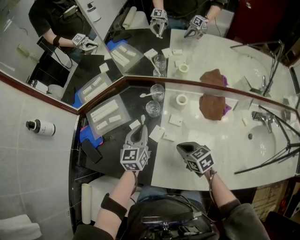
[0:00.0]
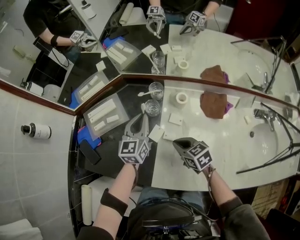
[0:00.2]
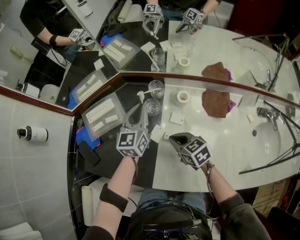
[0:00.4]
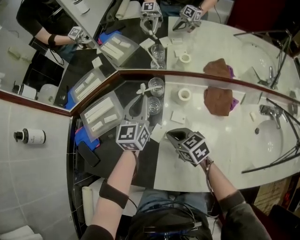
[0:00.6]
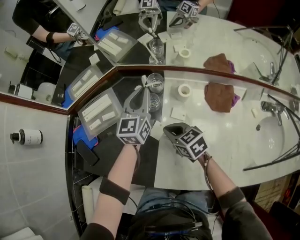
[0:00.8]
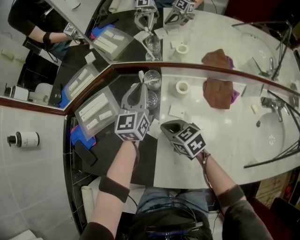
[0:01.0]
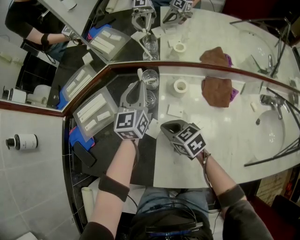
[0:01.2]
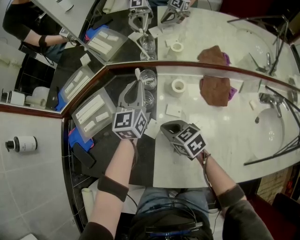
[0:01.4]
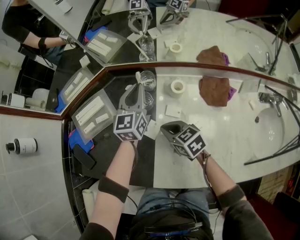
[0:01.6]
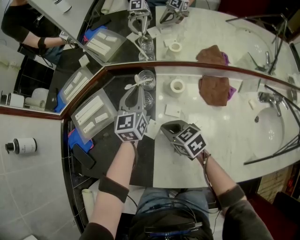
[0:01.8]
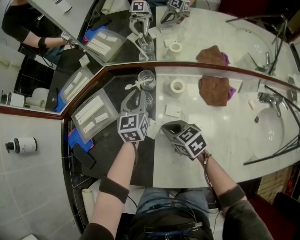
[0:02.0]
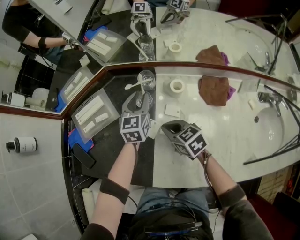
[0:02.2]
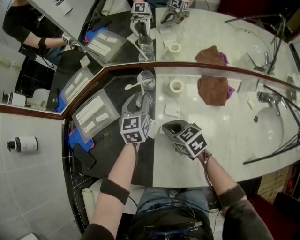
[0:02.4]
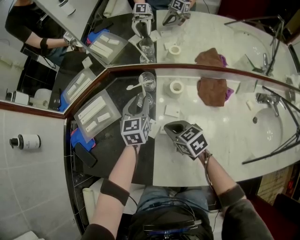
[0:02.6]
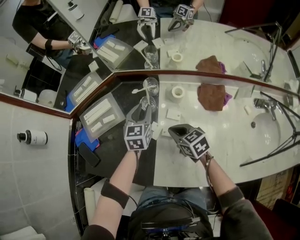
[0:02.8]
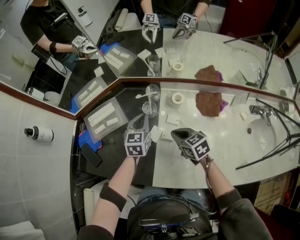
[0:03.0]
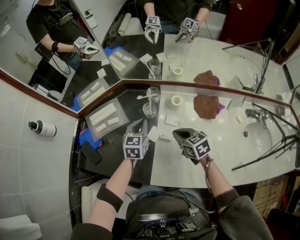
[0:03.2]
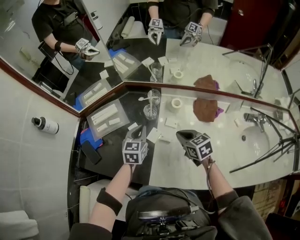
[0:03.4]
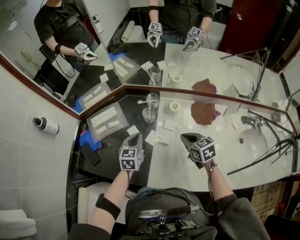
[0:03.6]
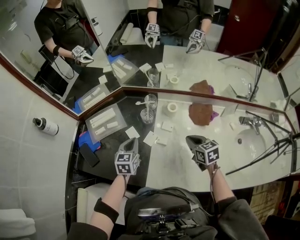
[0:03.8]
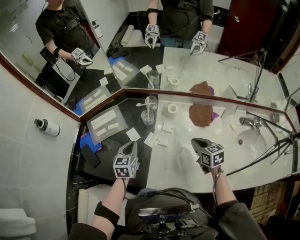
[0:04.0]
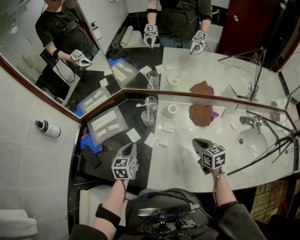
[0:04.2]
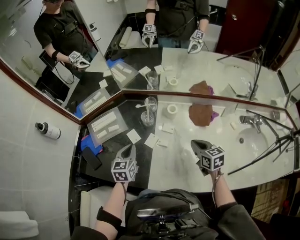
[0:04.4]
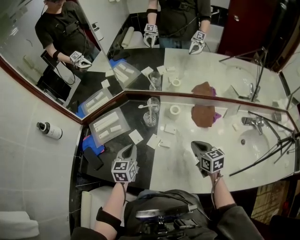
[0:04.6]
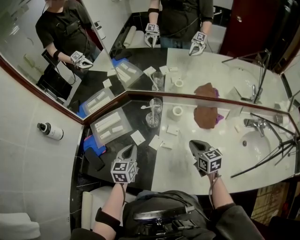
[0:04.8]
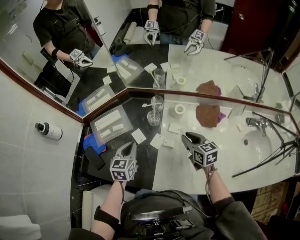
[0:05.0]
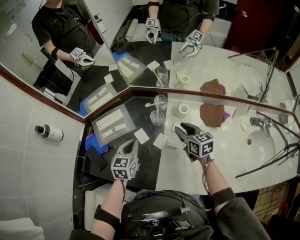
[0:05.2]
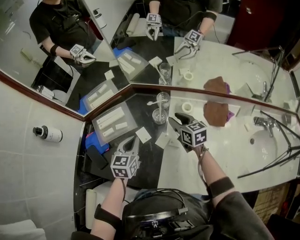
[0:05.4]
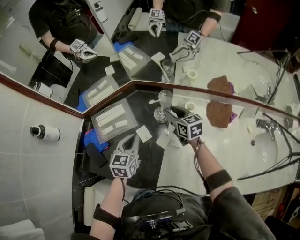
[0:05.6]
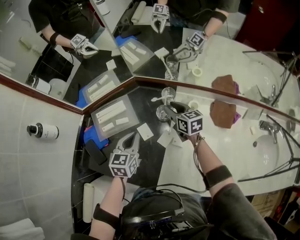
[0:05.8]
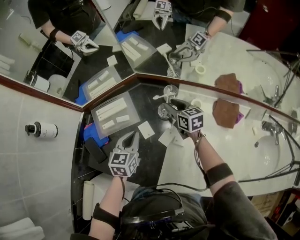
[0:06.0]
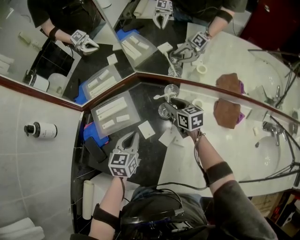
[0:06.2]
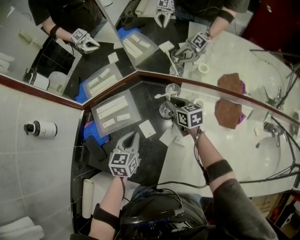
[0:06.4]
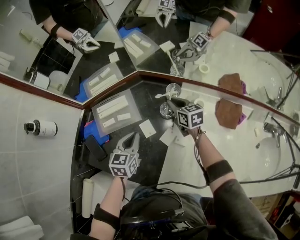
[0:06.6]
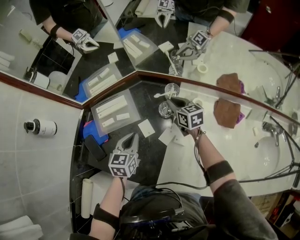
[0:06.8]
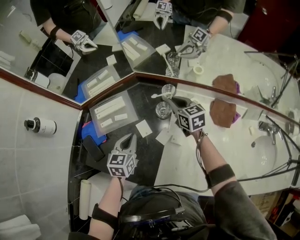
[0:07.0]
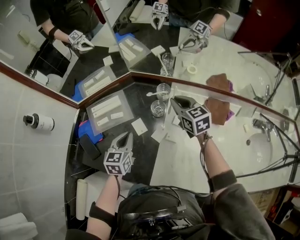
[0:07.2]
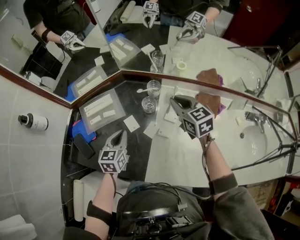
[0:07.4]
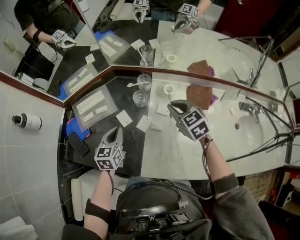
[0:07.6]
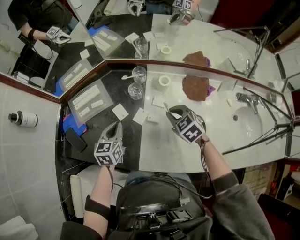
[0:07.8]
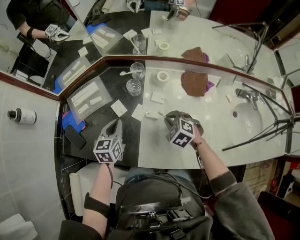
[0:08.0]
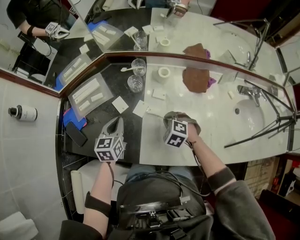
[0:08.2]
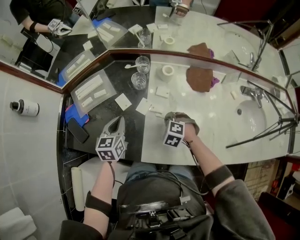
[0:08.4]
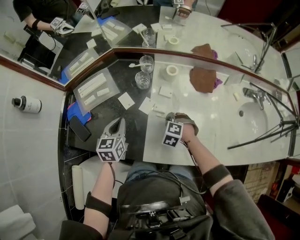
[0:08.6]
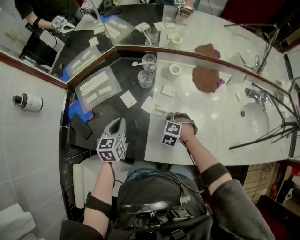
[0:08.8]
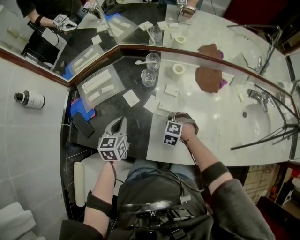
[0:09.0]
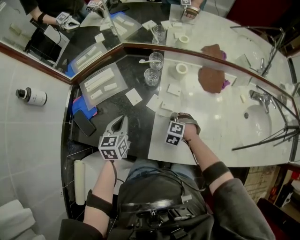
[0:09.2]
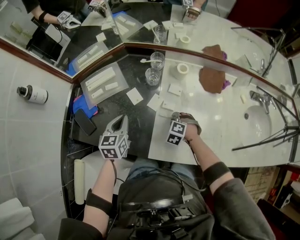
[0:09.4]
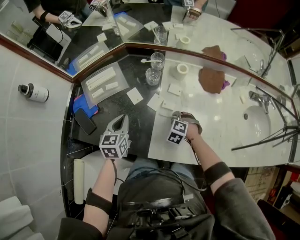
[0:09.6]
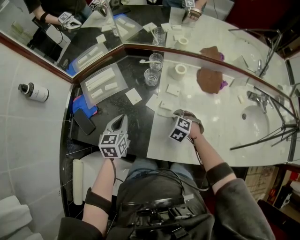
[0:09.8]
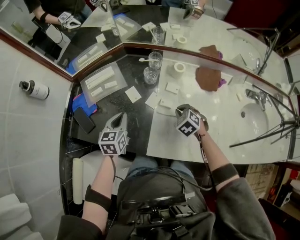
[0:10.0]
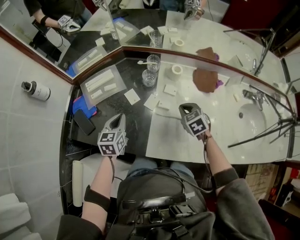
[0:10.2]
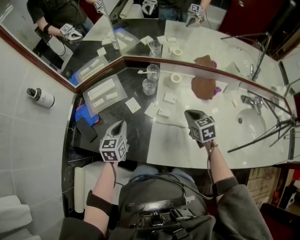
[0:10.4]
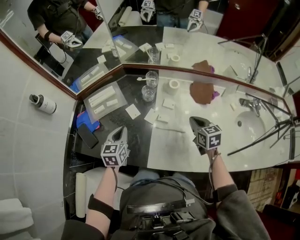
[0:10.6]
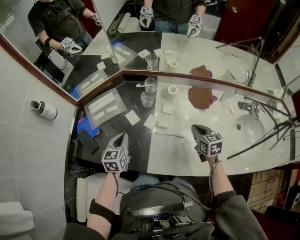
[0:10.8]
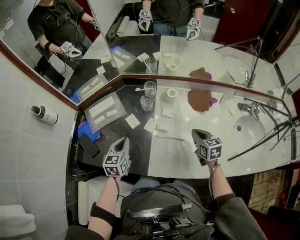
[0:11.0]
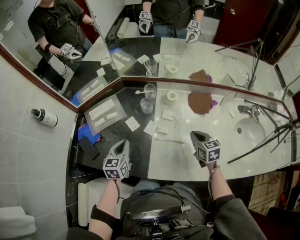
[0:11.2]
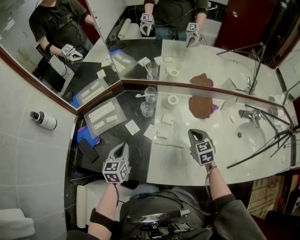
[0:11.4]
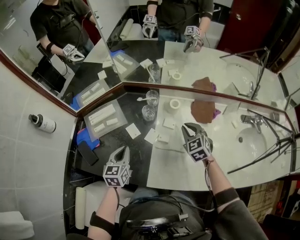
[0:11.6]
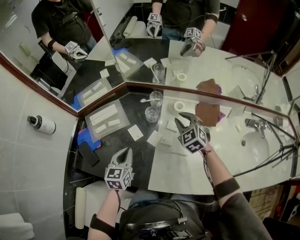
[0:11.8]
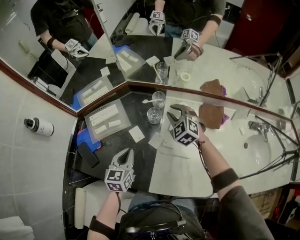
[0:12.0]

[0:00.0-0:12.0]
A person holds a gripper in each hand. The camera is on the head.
0:00.0 to 0:01.6: The right gripper travels forward by some 10 cm, while the left gripper travels forward and to the right by some 15 cm.
0:01.6 to 0:03.0: The left gripper is displaced backward by approximately 10 cm, and opens, then closes once more, while the right gripper shifts about 5 cm upward.
0:03.0 to 0:04.4: The right gripper is displaced to the right and backward by approximately 15 cm. The left gripper is displaced backward and to the left by about 15 cm.
0:04.4 to 0:06.0: The left gripper travels forward by approximately 10 cm; the right gripper heads forward and to the left, covering some 30 cm, and opens up.
0:06.0 to 0:07.6: The left gripper goes approximately 5 cm backward, while the right gripper is displaced backward, upward and to the right by approximately 20 cm, swivels approximately 30 degrees, and closes up.
0:07.6 to 0:09.0: The right gripper travels downward and backward by about 25 cm, and points its fingers approximately 30 degrees further downward; the left gripper moves backward, some 5 cm.
0:09.0 to 0:10.4: The right gripper travels upward and to the right by about 15 cm, and rotates around the line of its fingers by approximately 50 degrees, clockwise from behind.
0:10.4 to 0:12.0: The right gripper shifts some 20 cm forward and to the left, twists roughly 40 degrees counterclockwise, seen from behind, and opens up.

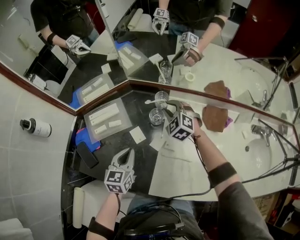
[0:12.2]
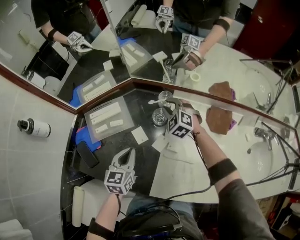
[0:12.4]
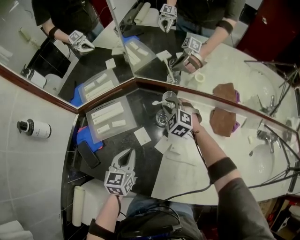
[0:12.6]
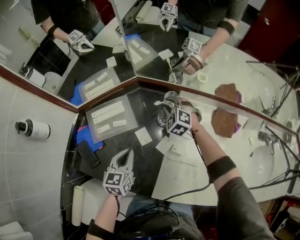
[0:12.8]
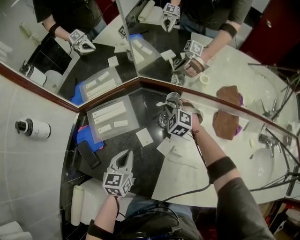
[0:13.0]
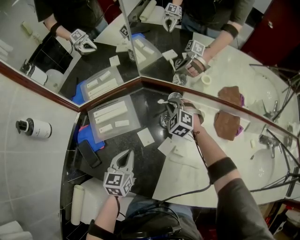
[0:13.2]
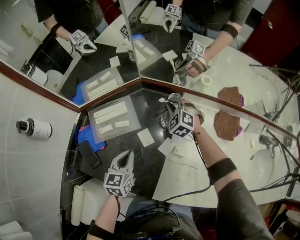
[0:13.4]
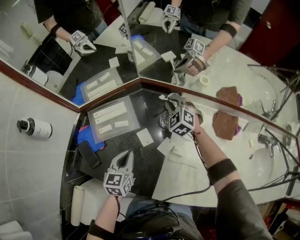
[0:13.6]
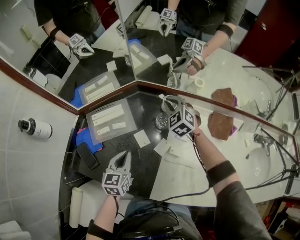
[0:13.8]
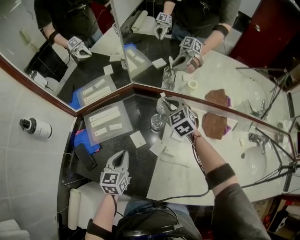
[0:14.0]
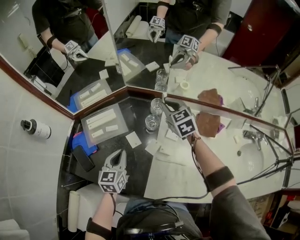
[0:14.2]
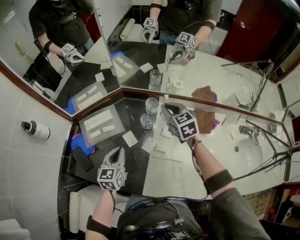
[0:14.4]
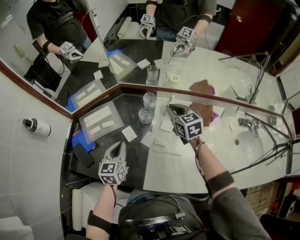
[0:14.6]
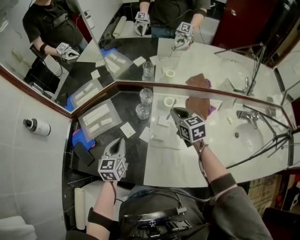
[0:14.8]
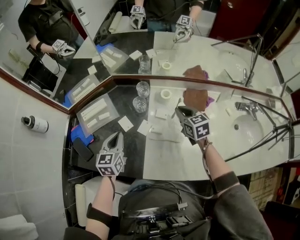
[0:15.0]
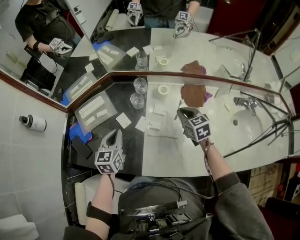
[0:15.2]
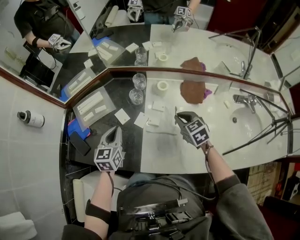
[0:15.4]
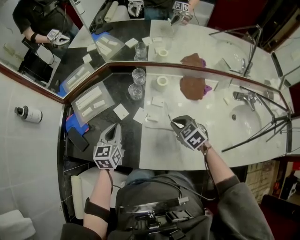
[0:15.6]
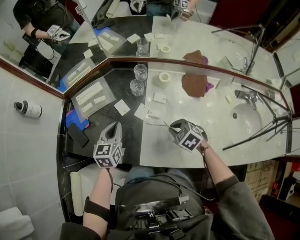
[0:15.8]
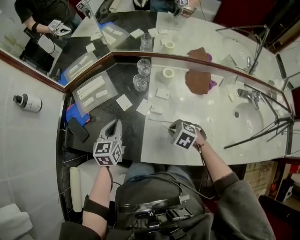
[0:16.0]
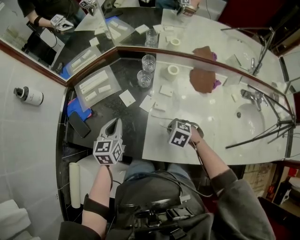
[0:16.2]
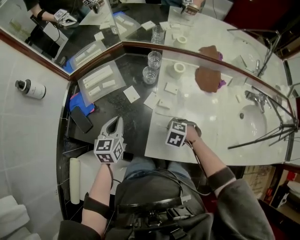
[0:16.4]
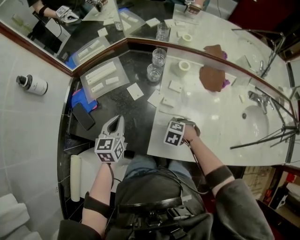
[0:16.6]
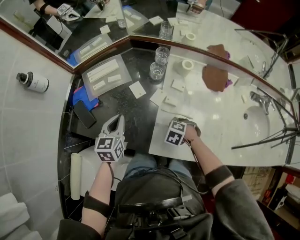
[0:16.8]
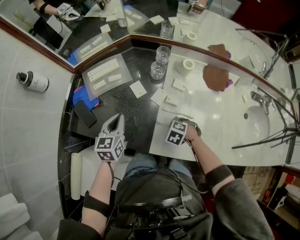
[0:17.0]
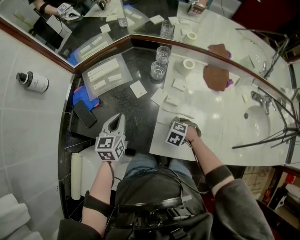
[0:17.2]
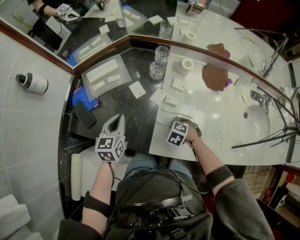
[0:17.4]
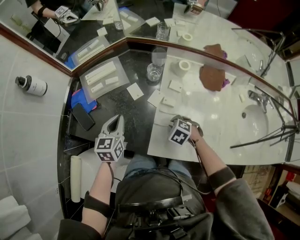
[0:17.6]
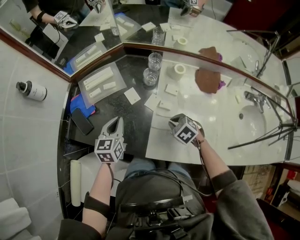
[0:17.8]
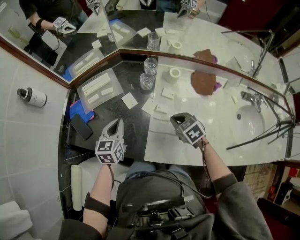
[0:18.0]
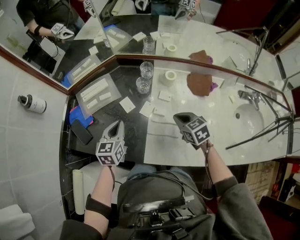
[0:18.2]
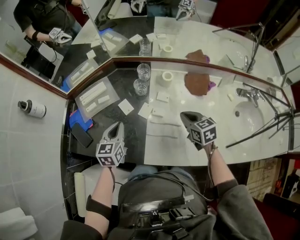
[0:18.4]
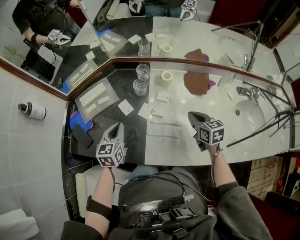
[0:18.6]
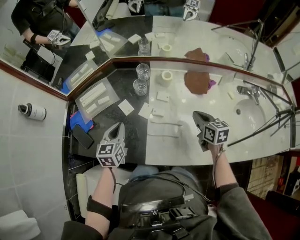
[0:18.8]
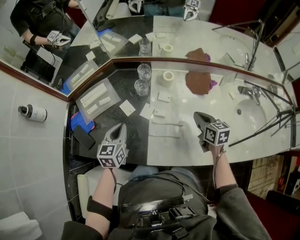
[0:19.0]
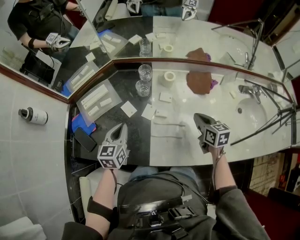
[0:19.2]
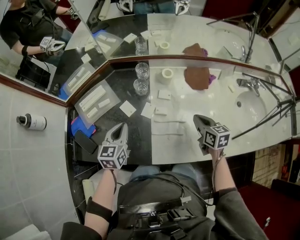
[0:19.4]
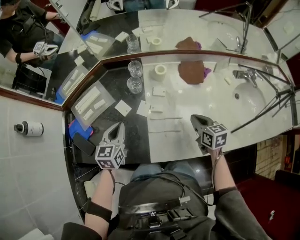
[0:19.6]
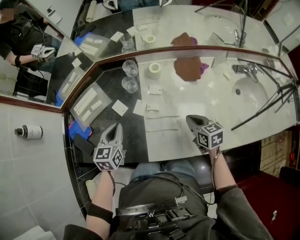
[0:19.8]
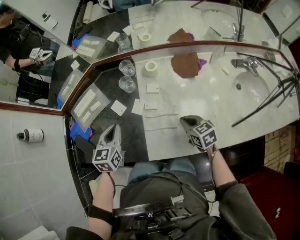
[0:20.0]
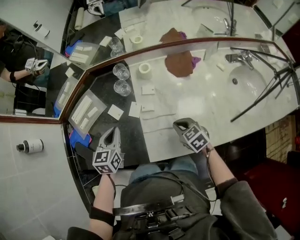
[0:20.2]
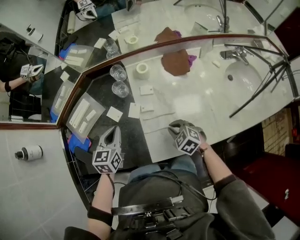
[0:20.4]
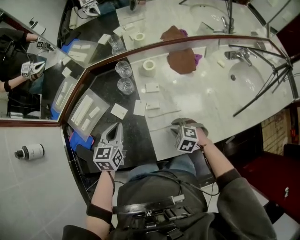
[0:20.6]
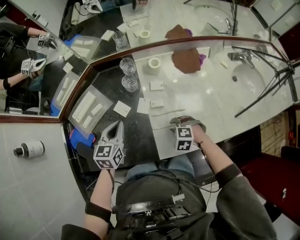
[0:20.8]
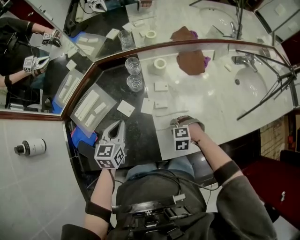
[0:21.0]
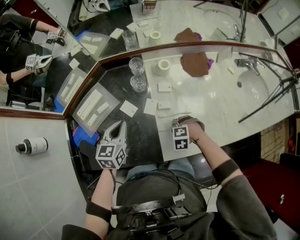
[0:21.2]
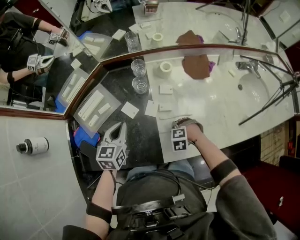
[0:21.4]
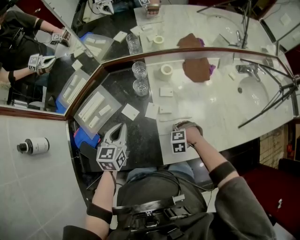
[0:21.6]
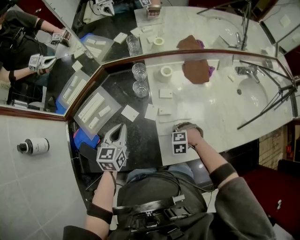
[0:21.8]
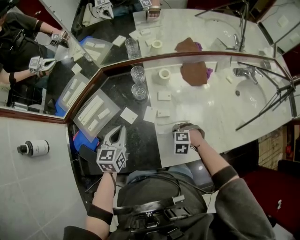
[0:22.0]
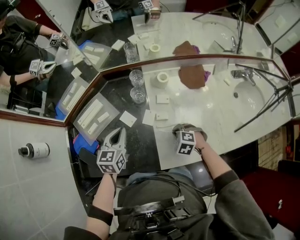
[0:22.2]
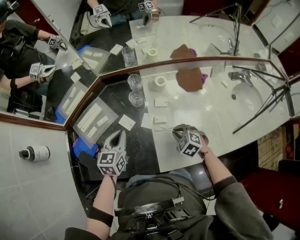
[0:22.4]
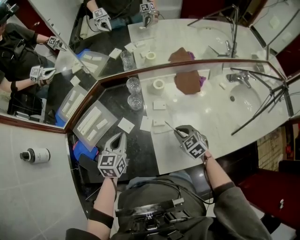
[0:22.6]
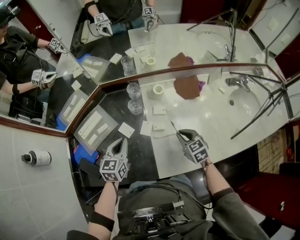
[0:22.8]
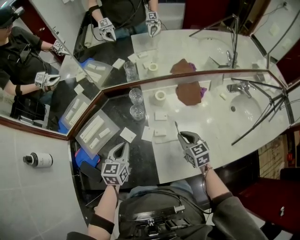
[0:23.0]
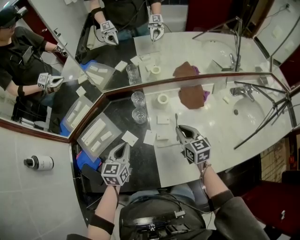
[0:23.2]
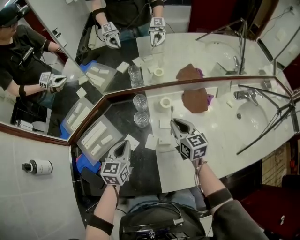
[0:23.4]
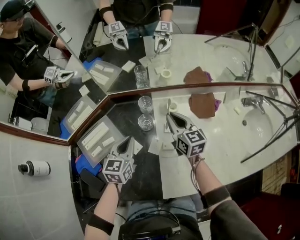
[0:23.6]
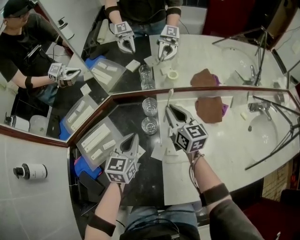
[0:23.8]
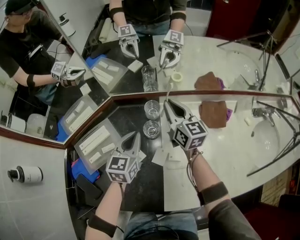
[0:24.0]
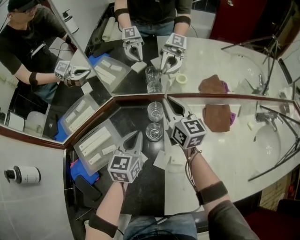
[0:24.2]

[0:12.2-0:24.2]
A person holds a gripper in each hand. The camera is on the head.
0:12.2 to 0:13.8: The right gripper heads forward, covering approximately 5 cm.
0:13.8 to 0:15.2: The right gripper moves backward and to the right, approximately 30 cm, and rotates around the line of its fingers by some 40 degrees, clockwise from behind. The left gripper heads to the right and upward, covering some 10 cm.
0:15.2 to 0:16.6: The right gripper shifts by approximately 30 cm, and points its fingers approximately 40 degrees further downward, while the left gripper moves approximately 10 cm.
0:16.6 to 0:18.2: The right gripper goes about 15 cm upward, and points its fingers roughly 40 degrees further upward.
0:18.2 to 0:19.8: The right gripper goes approximately 10 cm to the right and backward, and rotates approximately 30 degrees.
0:19.8 to 0:21.2: The left gripper ends up roughly 5 cm from where it was. Meanwhile the right gripper changes place by some 20 cm, rolls counterclockwise, seen from behind, by roughly 70 degrees, and opens up.
0:21.2 to 0:22.6: The right gripper is displaced upward by roughly 10 cm, tips its fingers upward by about 30 degrees, and closes up.
0:22.6 to 0:24.2: The right gripper goes some 30 cm forward, and tilts its fingers roughly 40 degrees upward. Meanwhile the left gripper shifts approximately 15 cm forward.
